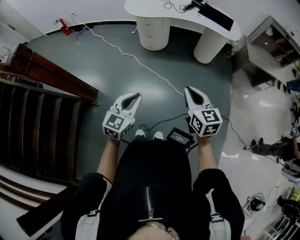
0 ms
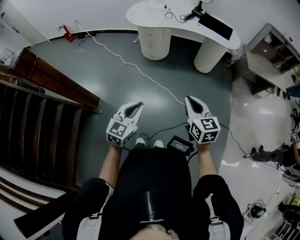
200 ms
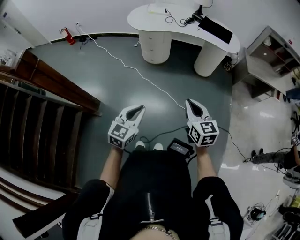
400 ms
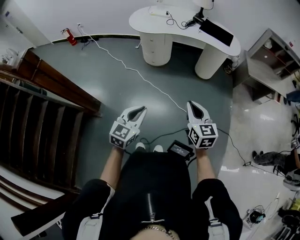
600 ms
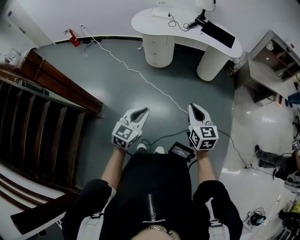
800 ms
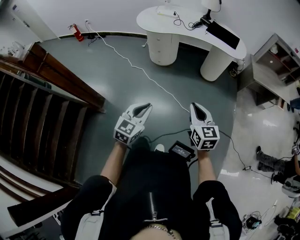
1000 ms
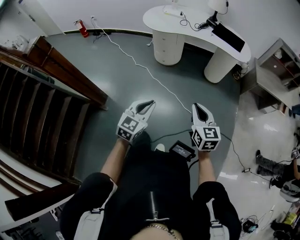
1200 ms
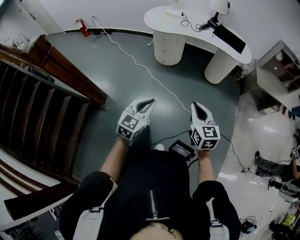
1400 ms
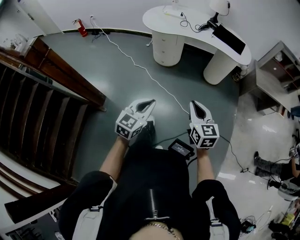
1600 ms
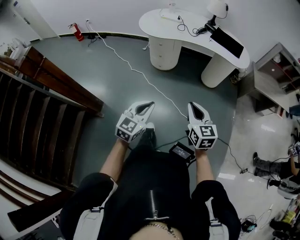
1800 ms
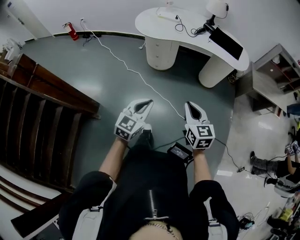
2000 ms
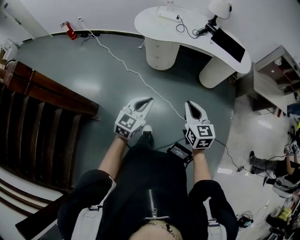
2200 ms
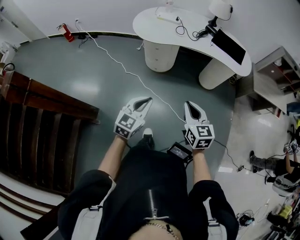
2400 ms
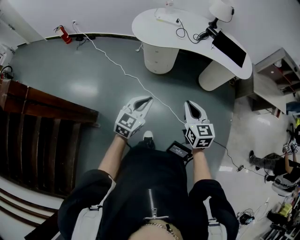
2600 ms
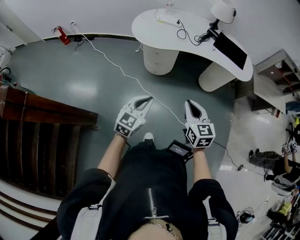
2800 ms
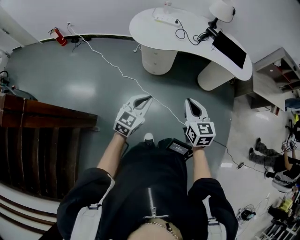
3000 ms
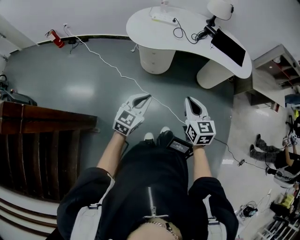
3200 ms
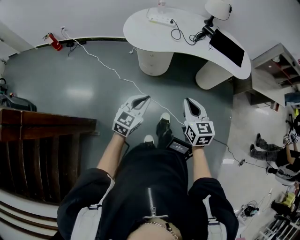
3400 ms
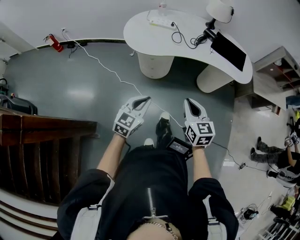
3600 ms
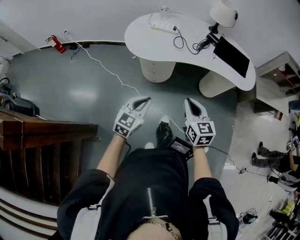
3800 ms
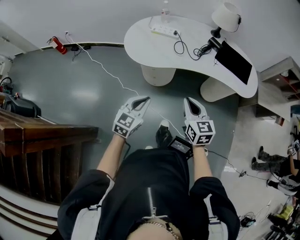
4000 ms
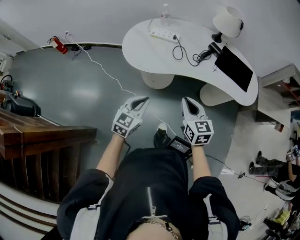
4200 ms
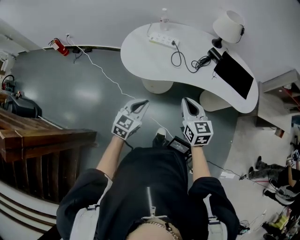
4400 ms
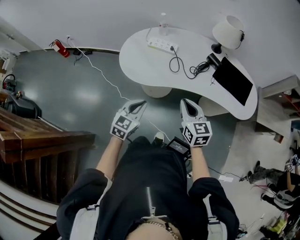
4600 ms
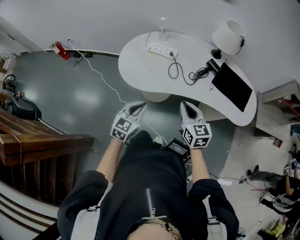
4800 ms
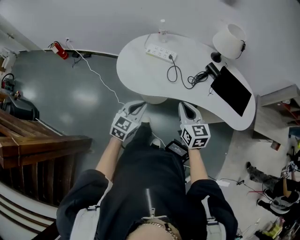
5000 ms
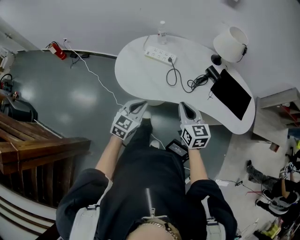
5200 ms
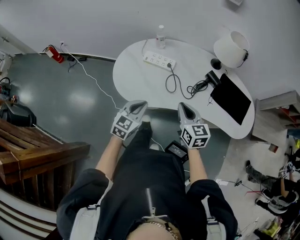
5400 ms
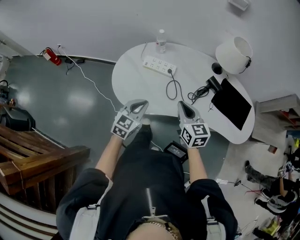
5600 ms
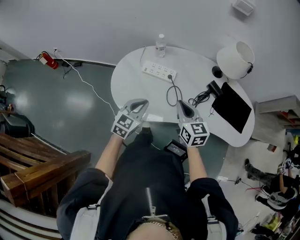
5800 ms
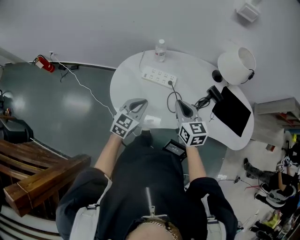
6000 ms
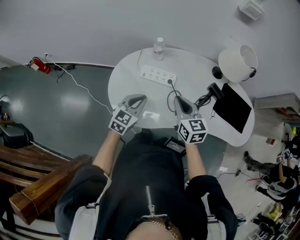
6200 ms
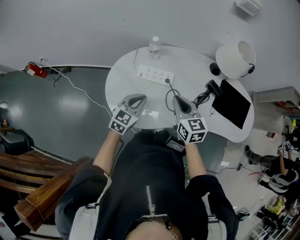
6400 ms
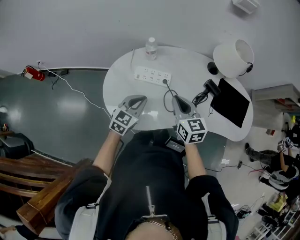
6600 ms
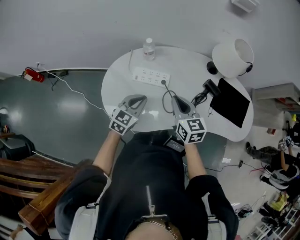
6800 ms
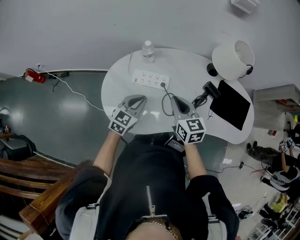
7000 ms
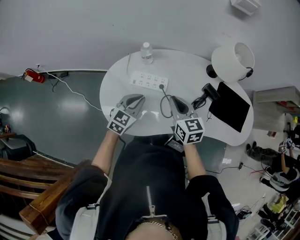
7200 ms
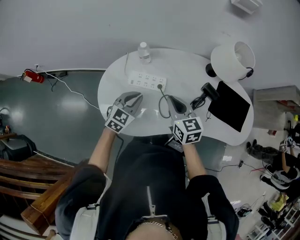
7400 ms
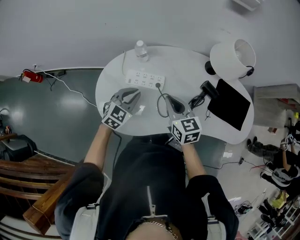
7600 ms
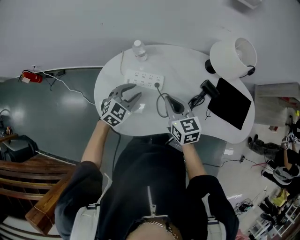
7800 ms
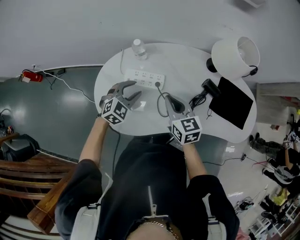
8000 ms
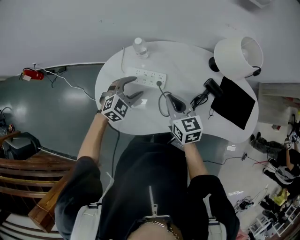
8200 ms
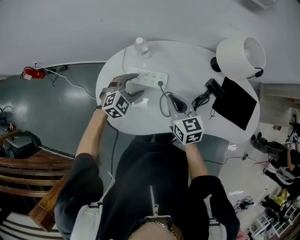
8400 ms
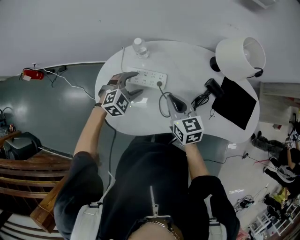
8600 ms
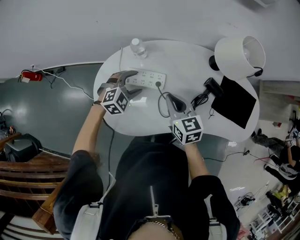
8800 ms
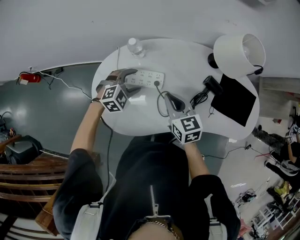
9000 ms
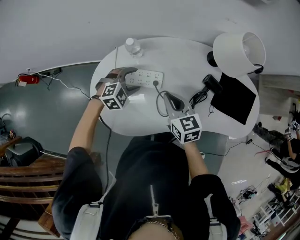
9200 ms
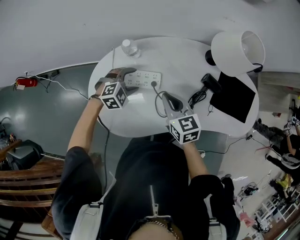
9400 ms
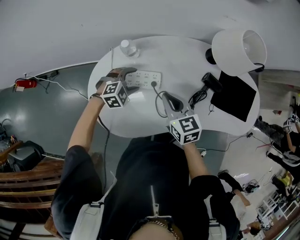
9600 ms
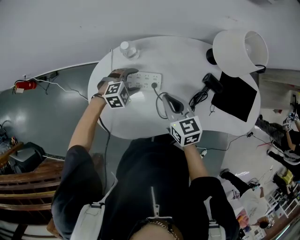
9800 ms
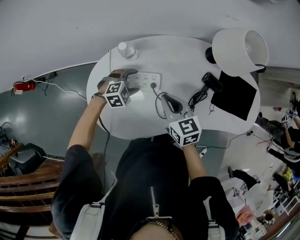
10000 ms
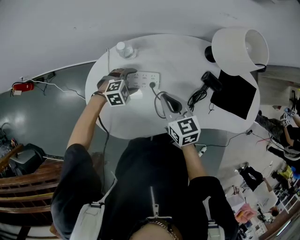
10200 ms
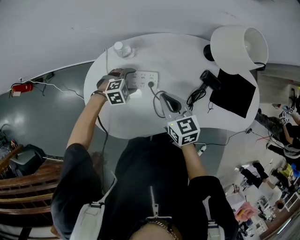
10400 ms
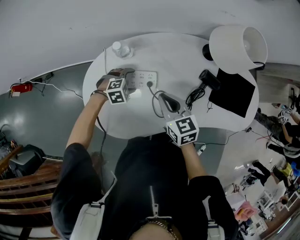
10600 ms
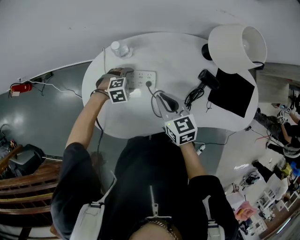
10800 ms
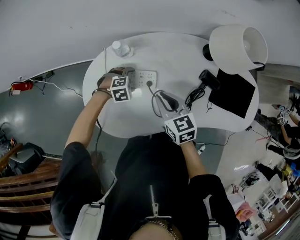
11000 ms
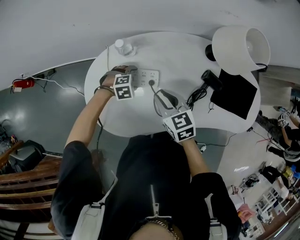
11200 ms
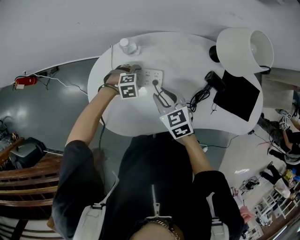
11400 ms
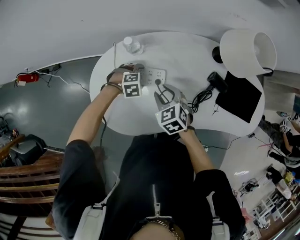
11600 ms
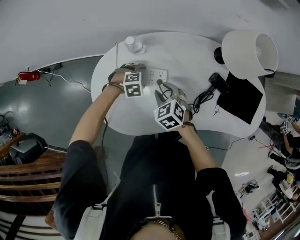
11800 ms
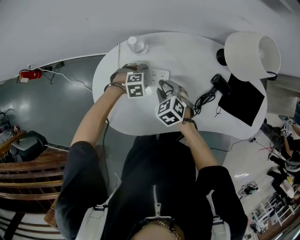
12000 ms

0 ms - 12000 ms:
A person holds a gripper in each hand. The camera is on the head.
0 ms - 1600 ms: There are only small adjustments of the grippers.
1600 ms - 3000 ms: The right gripper shifts roughly 25 cm forward and to the left; the left gripper travels forward by some 30 cm.
3000 ms - 4400 ms: The grippers both shift forward by approximately 25 cm.
4400 ms - 6000 ms: Both grippers travel together forward, approximately 30 cm.
6000 ms - 7600 ms: Both grippers travel together forward, some 10 cm.
7600 ms - 9000 ms: The left gripper shifts about 10 cm forward and downward, turns by some 30 degrees, and opens up.
9000 ms - 10400 ms: The left gripper heads downward, covering roughly 10 cm.
10400 ms - 12000 ms: The right gripper travels downward by approximately 10 cm, changes its angle by approximately 40 degrees, and opens.

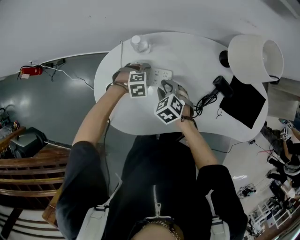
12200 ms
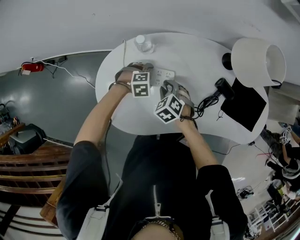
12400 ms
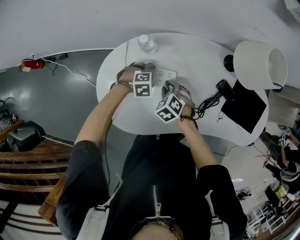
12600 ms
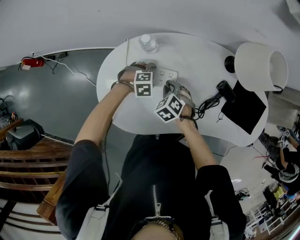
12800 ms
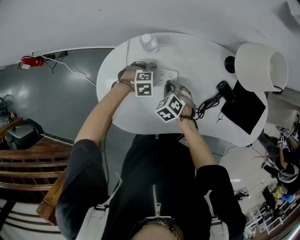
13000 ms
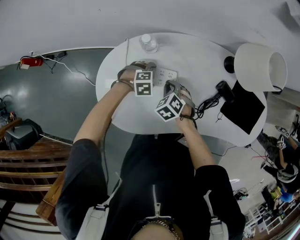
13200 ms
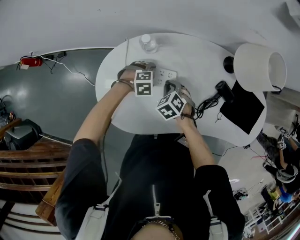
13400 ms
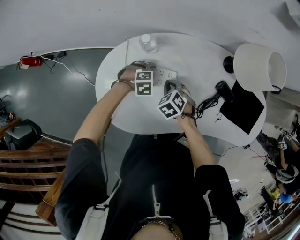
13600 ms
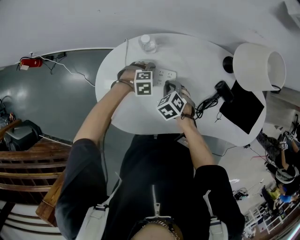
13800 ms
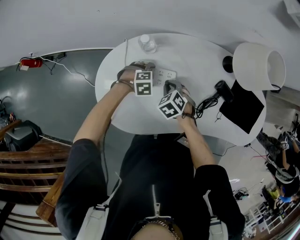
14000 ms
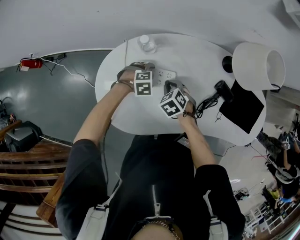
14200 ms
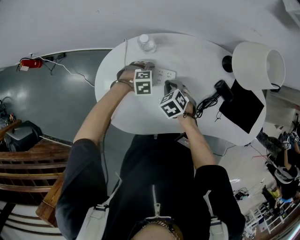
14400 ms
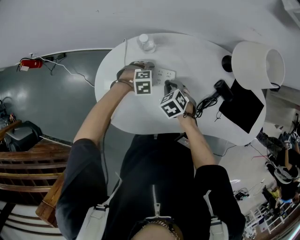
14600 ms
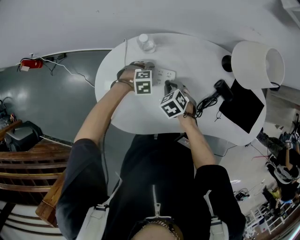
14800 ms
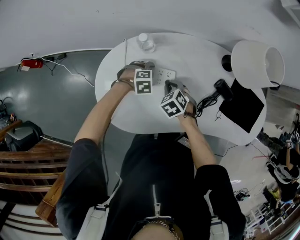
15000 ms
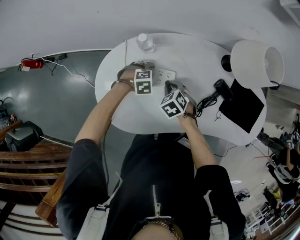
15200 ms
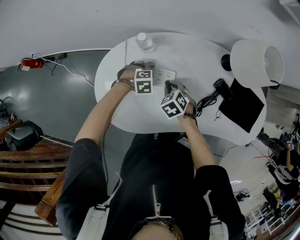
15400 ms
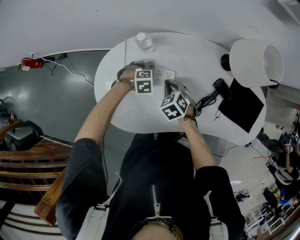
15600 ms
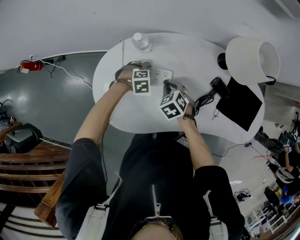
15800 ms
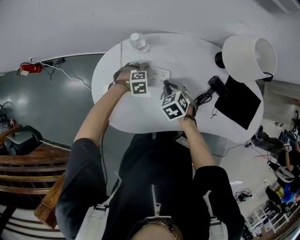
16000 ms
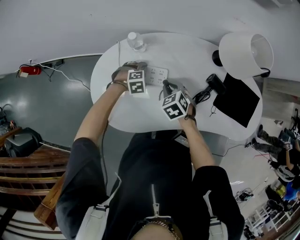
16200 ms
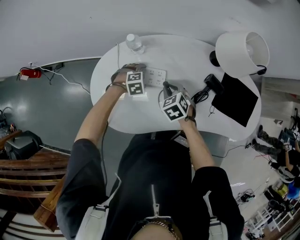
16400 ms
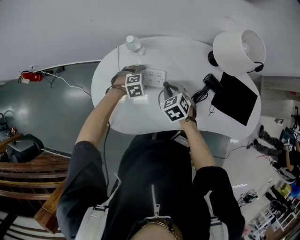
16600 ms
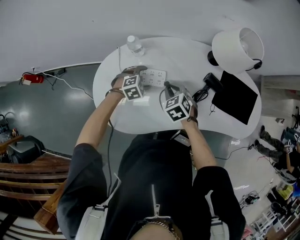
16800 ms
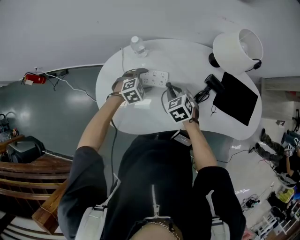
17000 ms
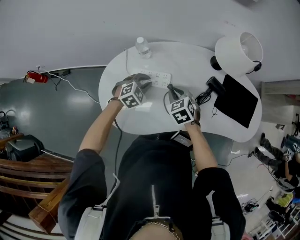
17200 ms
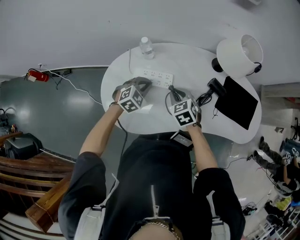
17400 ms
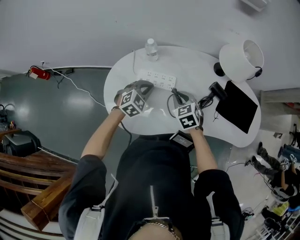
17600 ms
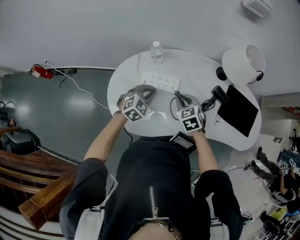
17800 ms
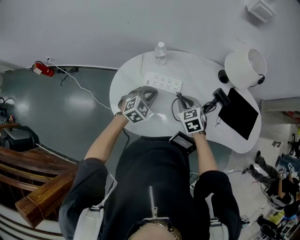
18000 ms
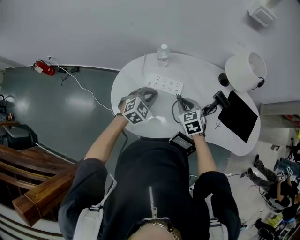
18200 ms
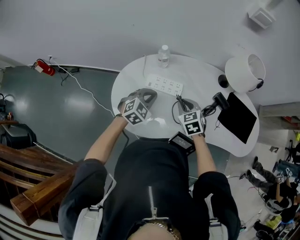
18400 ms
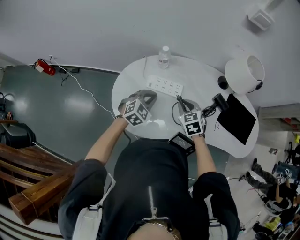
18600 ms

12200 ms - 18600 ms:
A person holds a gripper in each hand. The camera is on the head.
12200 ms - 13800 ms: The right gripper closes.
13800 ms - 15400 ms: There are only small adjustments of the grippers.
15400 ms - 17000 ms: Both grippers travel together upward, approximately 5 cm. The left gripper swivels roughly 20 degrees.
17000 ms - 18600 ms: The left gripper heads upward, backward and to the left, covering about 15 cm, changes its angle by about 20 degrees, and closes. The right gripper changes place by about 5 cm.

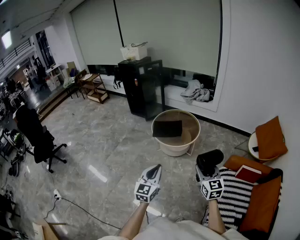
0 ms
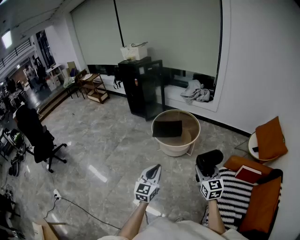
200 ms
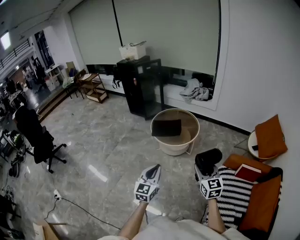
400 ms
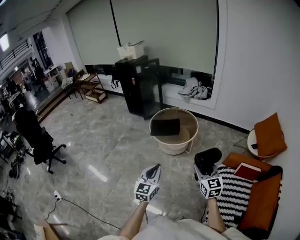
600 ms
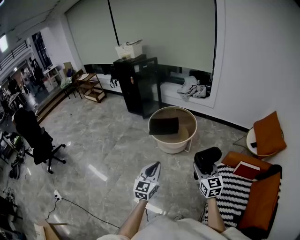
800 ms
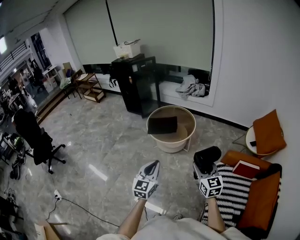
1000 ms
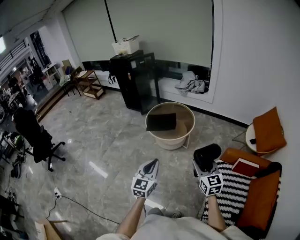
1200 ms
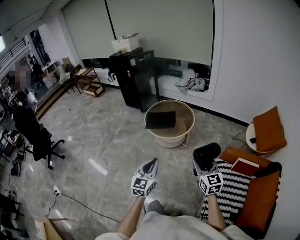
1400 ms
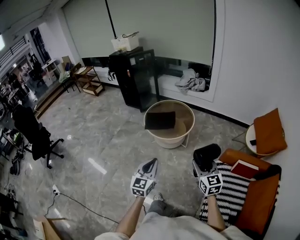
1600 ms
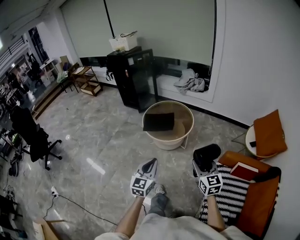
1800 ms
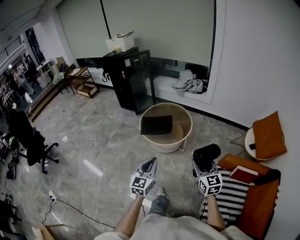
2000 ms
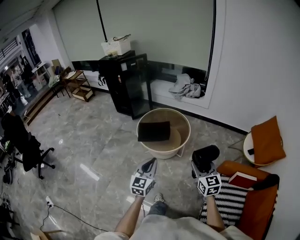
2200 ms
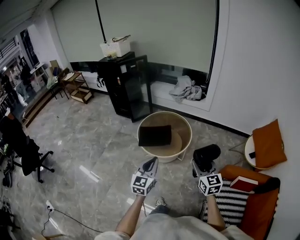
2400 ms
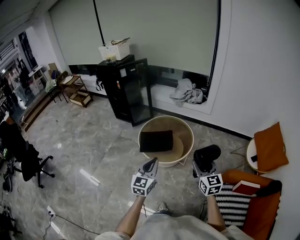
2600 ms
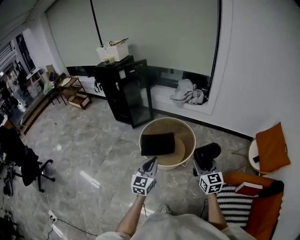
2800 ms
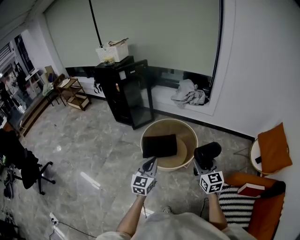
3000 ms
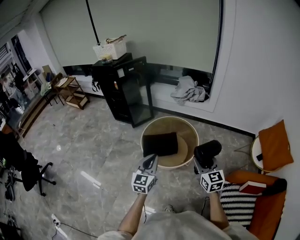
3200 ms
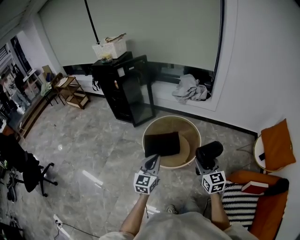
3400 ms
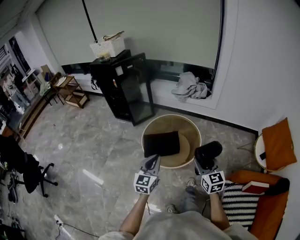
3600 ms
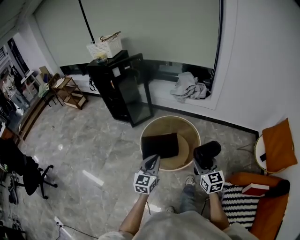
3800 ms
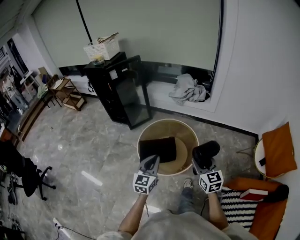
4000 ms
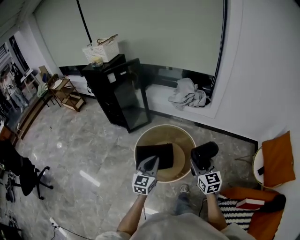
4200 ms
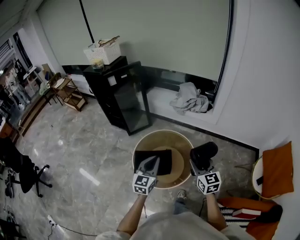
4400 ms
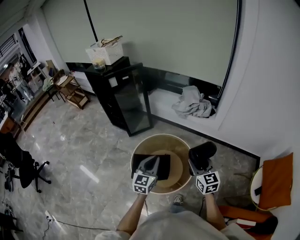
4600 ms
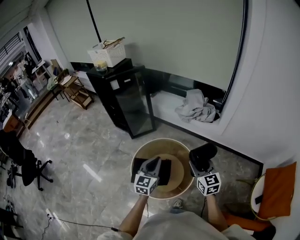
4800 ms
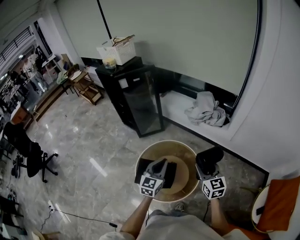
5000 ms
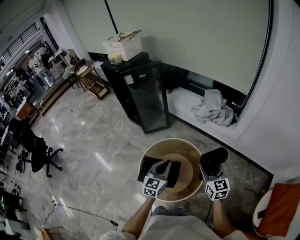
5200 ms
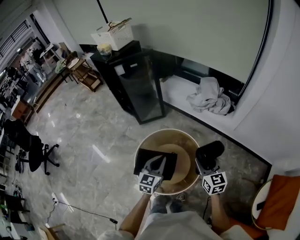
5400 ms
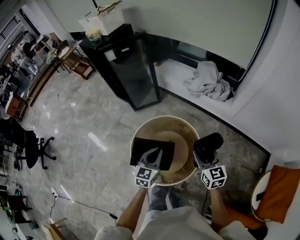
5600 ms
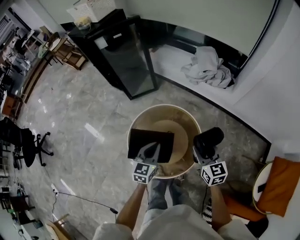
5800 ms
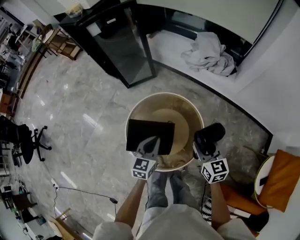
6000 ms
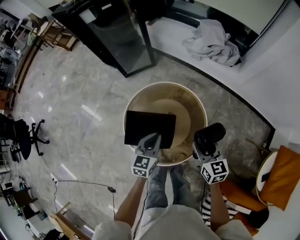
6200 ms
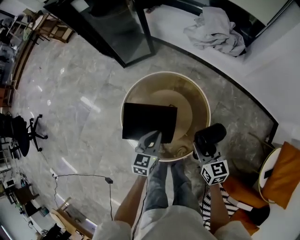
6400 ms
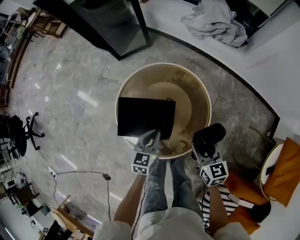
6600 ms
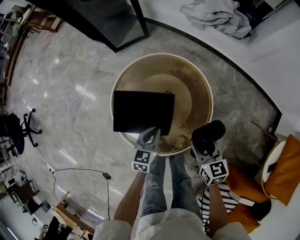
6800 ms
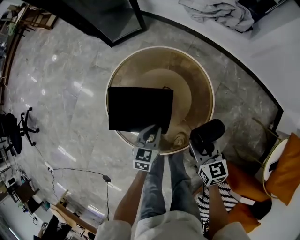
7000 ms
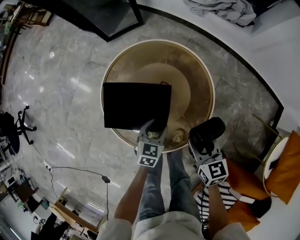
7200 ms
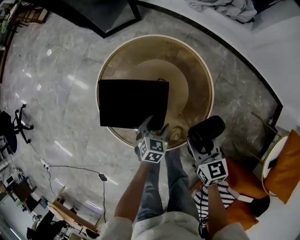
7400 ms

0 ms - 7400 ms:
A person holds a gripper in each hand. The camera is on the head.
0 ms - 1400 ms: The two grippers go approximately 5 cm to the right.
1400 ms - 3000 ms: The two grippers go roughly 35 cm forward.
3000 ms - 4400 ms: Both grippers travel together forward, about 25 cm.
4400 ms - 6000 ms: The left gripper travels downward and forward by roughly 25 cm, and changes its angle by some 20 degrees. Meanwhile the right gripper goes about 25 cm forward and downward.
6000 ms - 7400 ms: Both grippers move downward, approximately 30 cm. The left gripper turns by some 30 degrees, and opens up.
